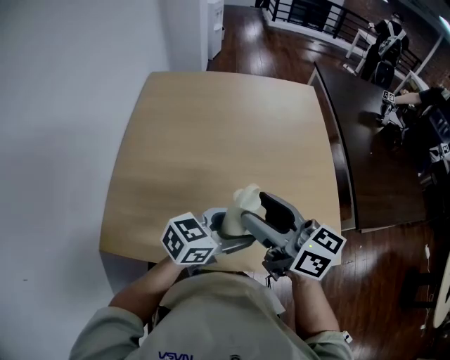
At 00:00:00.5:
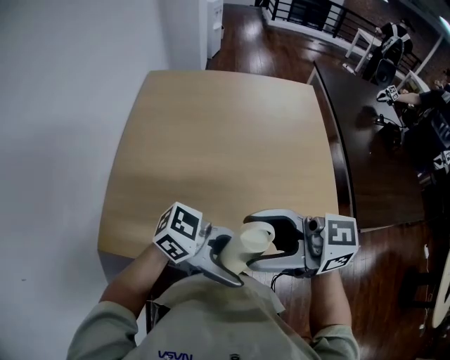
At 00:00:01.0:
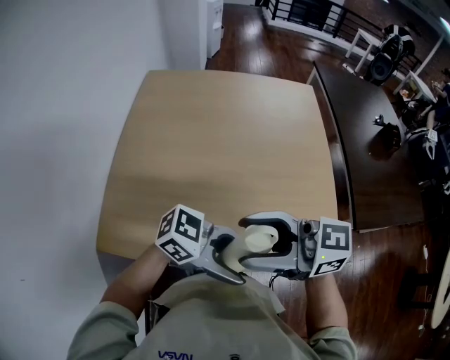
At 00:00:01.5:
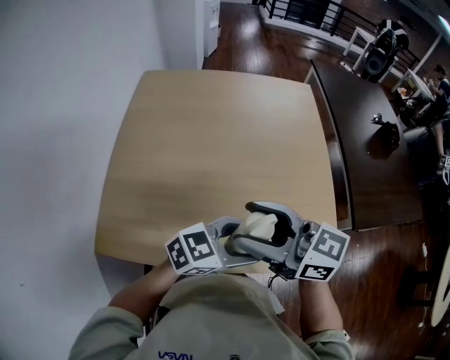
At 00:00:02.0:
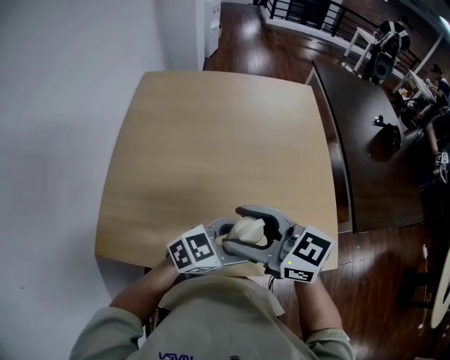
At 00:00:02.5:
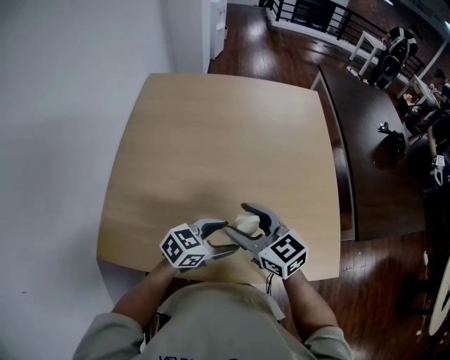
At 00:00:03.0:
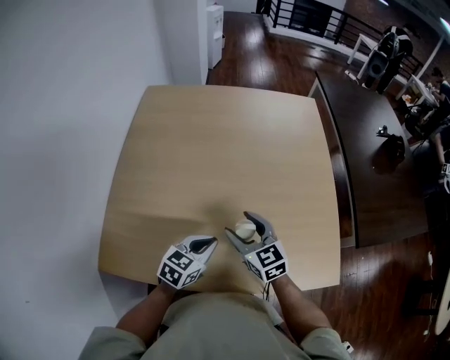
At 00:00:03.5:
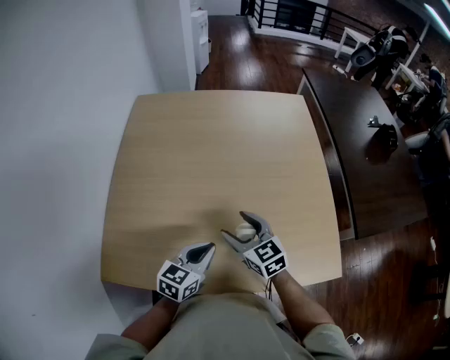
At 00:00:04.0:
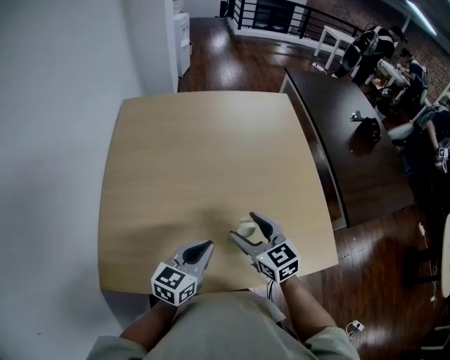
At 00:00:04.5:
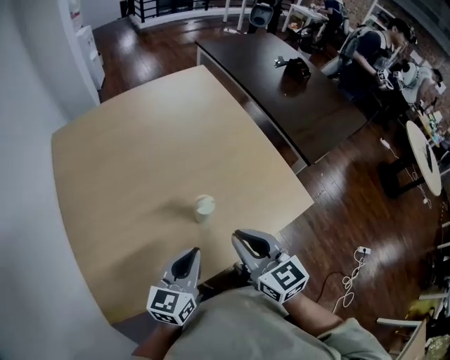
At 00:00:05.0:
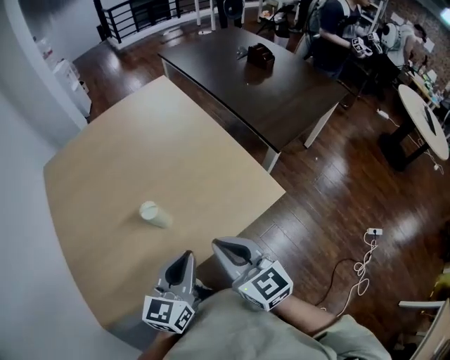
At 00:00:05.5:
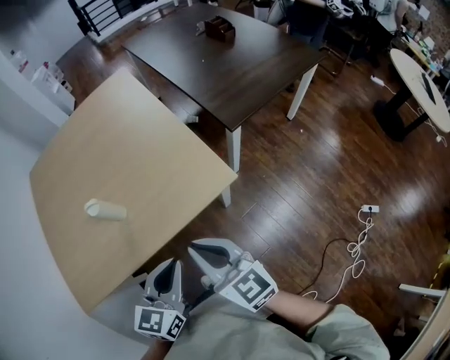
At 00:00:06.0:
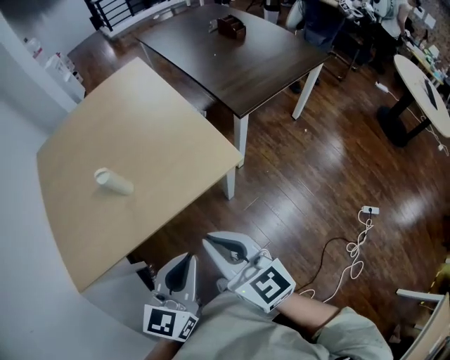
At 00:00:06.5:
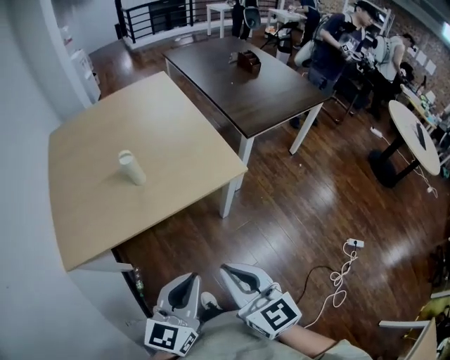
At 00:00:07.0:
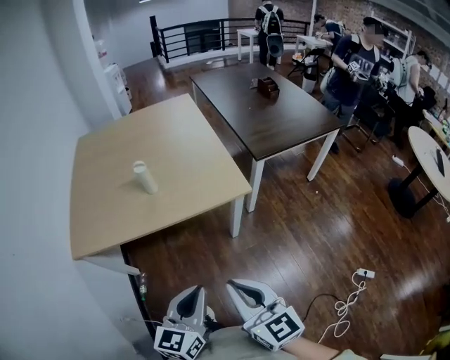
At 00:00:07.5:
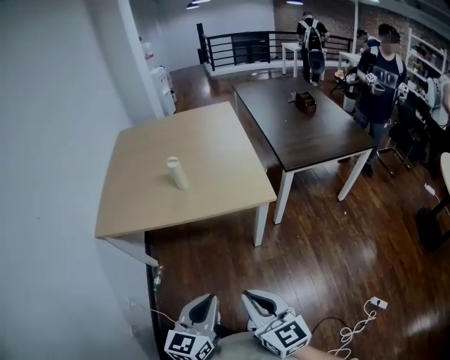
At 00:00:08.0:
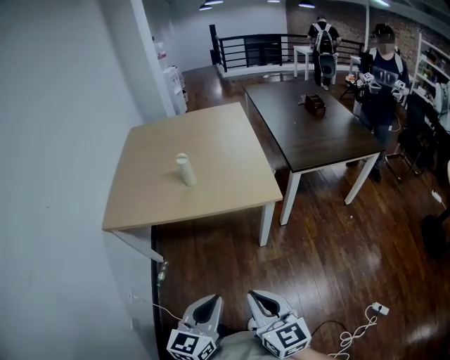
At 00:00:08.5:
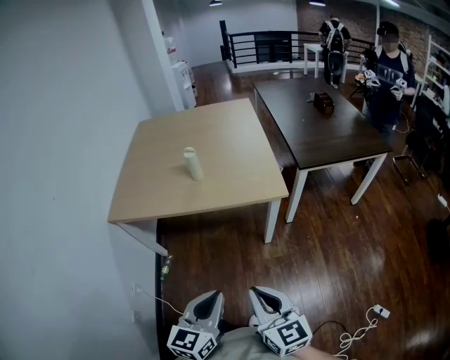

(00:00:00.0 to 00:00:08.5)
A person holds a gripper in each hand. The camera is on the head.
00:00:00.0 - 00:00:02.0: The right gripper changes its angle by approximately 30 degrees, while the left gripper goes upward and returns, approximately 5 cm each way, and changes its angle by roughly 20 degrees.
00:00:02.0 - 00:00:04.0: The left gripper reaches about 10 cm downward, then returns, rotates about 40 degrees, and closes up. The right gripper is displaced downward by about 10 cm, and swivels roughly 30 degrees.
00:00:04.0 - 00:00:06.5: Both grippers travel together backward and to the right, some 40 cm. The right gripper swivels about 30 degrees, and closes.
00:00:06.5 - 00:00:08.5: Both grippers travel together backward and to the right, roughly 15 cm. The left gripper rotates roughly 20 degrees.
